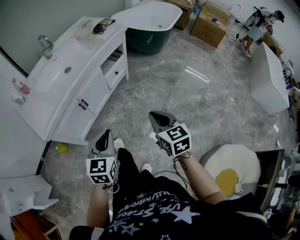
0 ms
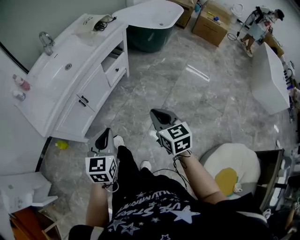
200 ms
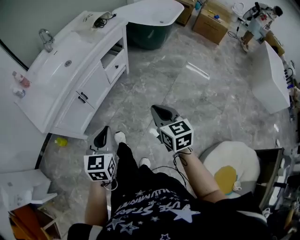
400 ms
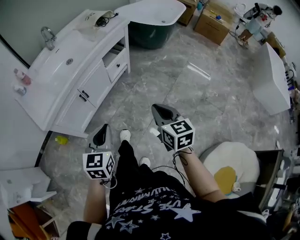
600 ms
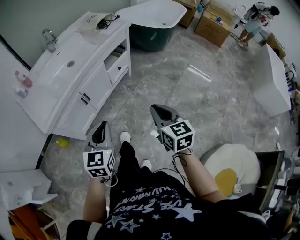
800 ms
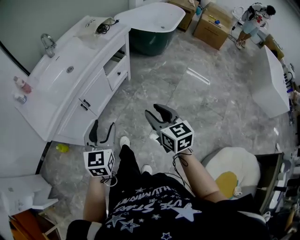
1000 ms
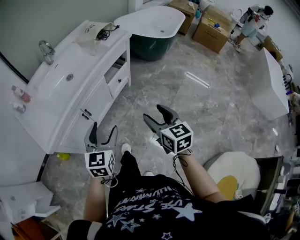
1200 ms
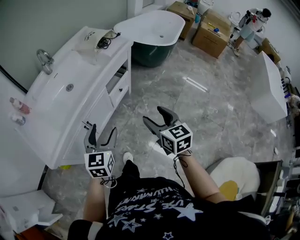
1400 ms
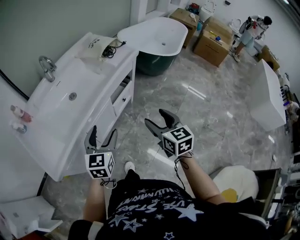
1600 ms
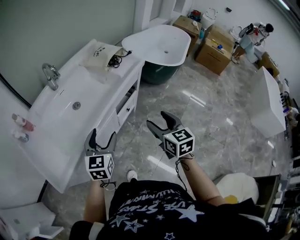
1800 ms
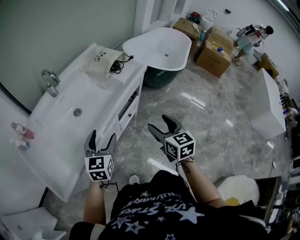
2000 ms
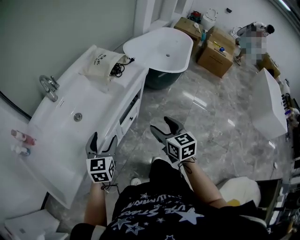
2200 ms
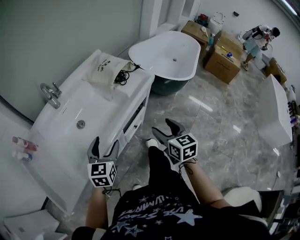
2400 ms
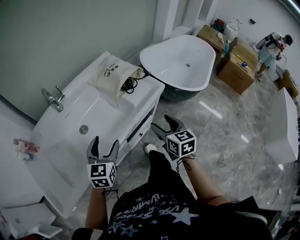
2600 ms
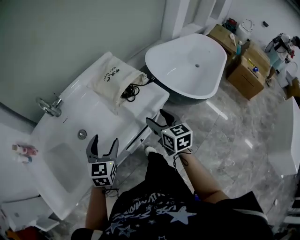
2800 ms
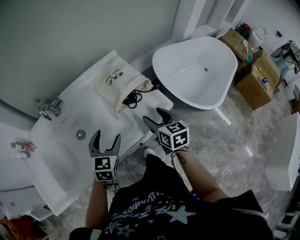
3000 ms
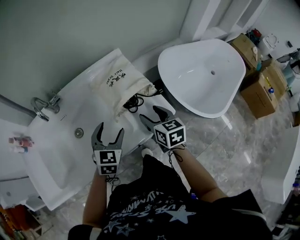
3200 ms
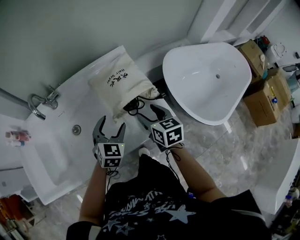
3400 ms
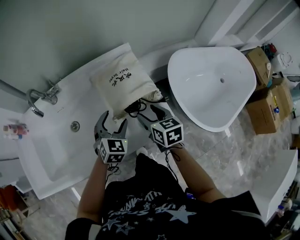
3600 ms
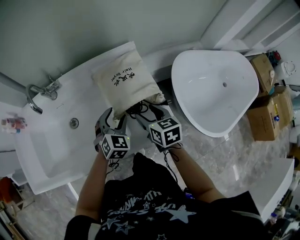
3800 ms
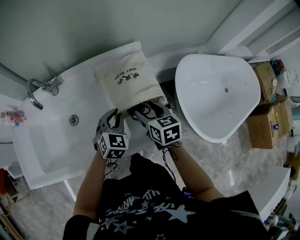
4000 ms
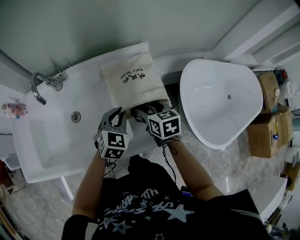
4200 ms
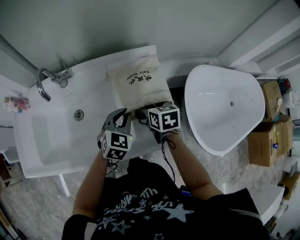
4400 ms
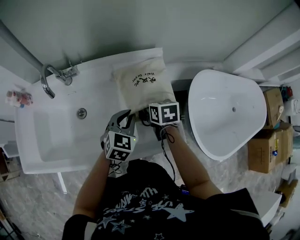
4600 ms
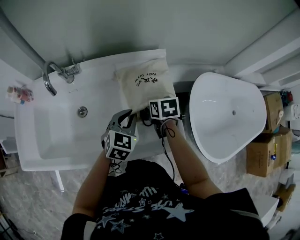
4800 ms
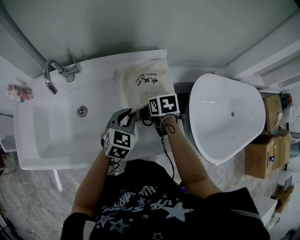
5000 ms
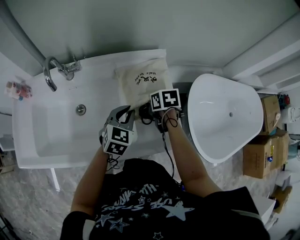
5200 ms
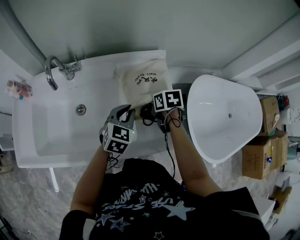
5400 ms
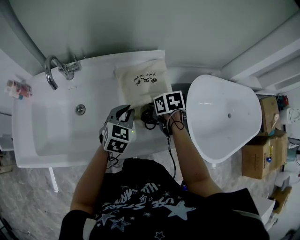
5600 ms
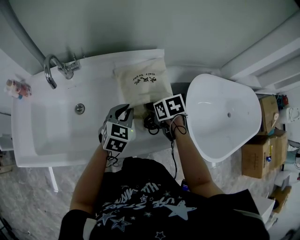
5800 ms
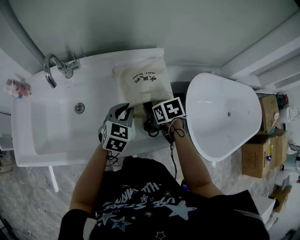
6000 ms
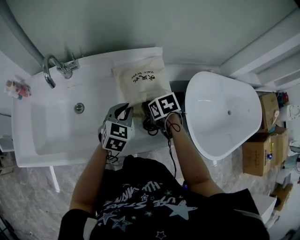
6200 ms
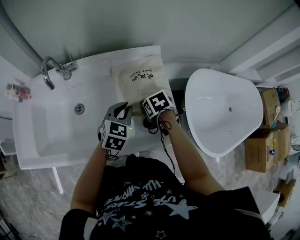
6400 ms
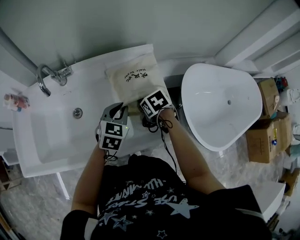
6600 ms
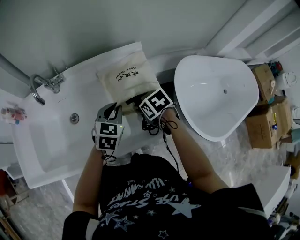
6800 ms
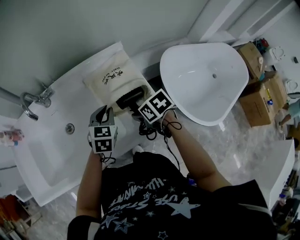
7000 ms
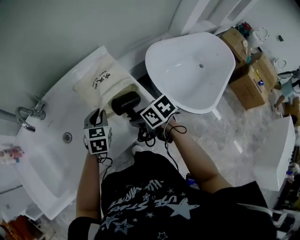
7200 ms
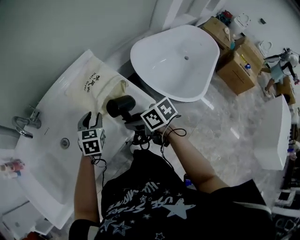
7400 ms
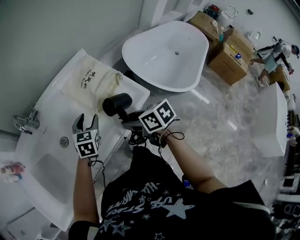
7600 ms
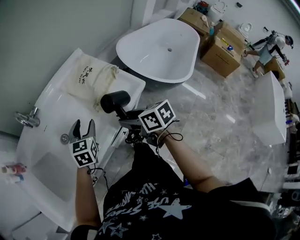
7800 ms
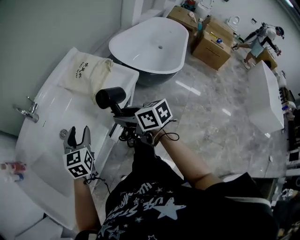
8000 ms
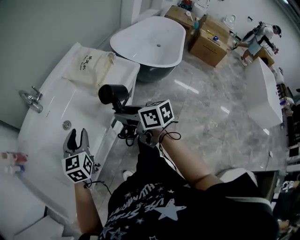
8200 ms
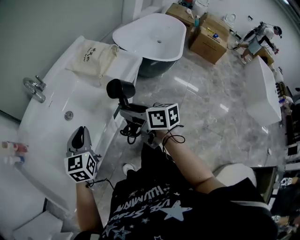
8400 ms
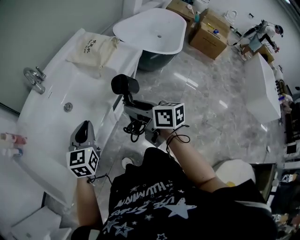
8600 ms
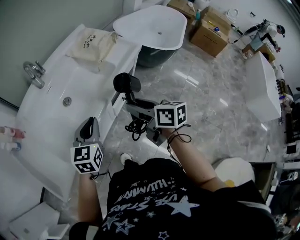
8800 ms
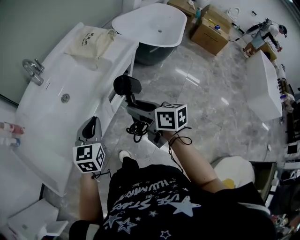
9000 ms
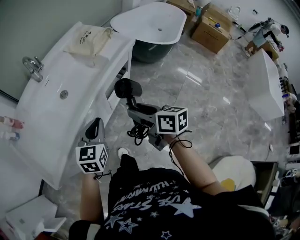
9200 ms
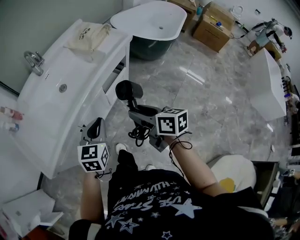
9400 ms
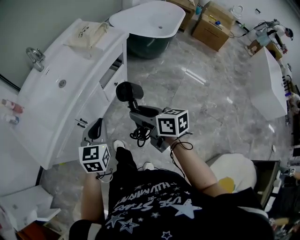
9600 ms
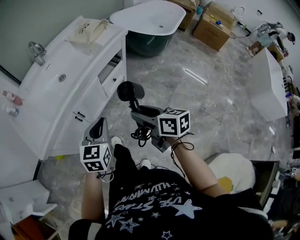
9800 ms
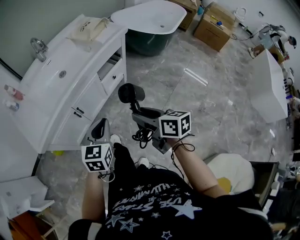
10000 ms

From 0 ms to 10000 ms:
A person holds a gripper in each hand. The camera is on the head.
From 0 ms to 1400 ms: The grippers both shift forward by some 20 cm. The left gripper opens its fingers, while the right gripper opens its fingers.
From 1400 ms to 2800 ms: The two grippers go approximately 40 cm forward.
From 2800 ms to 4200 ms: The left gripper ends up approximately 20 cm from where it was, and closes. Meanwhile the right gripper moves about 20 cm, and changes its angle by about 30 degrees.
From 4200 ms to 5800 ms: The right gripper swivels approximately 30 degrees, and closes.
From 5800 ms to 7200 ms: The right gripper is displaced backward by about 10 cm.
From 7200 ms to 8600 ms: The left gripper ends up some 35 cm from where it was, swivels roughly 30 degrees, and opens and closes again. Meanwhile the right gripper ends up approximately 35 cm from where it was, and tips its fingers upward by roughly 30 degrees.
From 8600 ms to 10000 ms: The left gripper moves backward and to the right, roughly 30 cm, while the right gripper travels backward by roughly 30 cm.

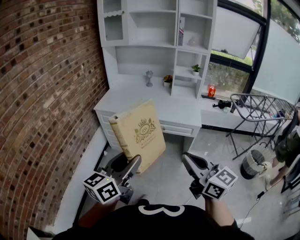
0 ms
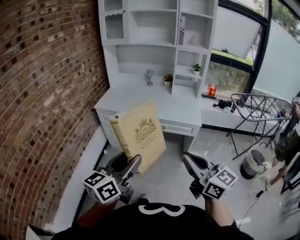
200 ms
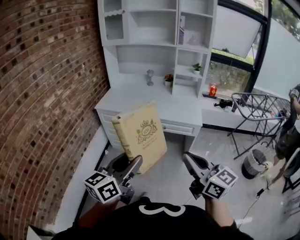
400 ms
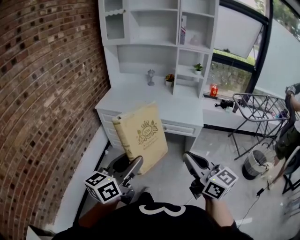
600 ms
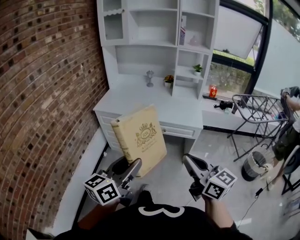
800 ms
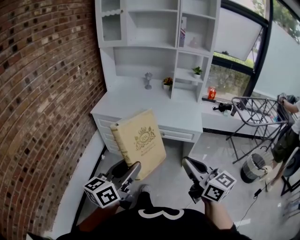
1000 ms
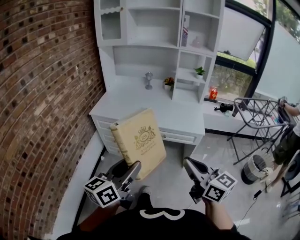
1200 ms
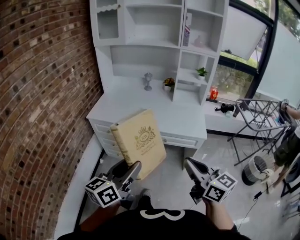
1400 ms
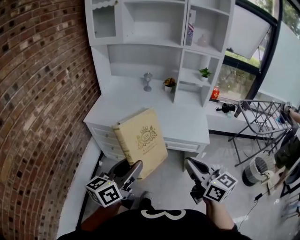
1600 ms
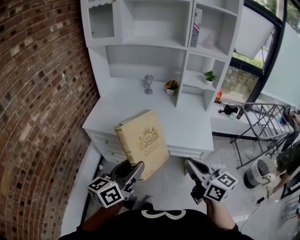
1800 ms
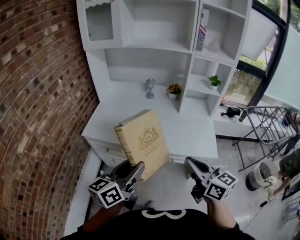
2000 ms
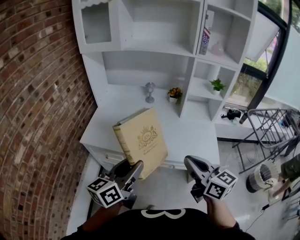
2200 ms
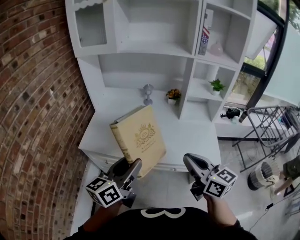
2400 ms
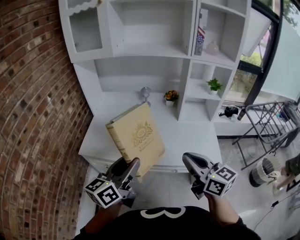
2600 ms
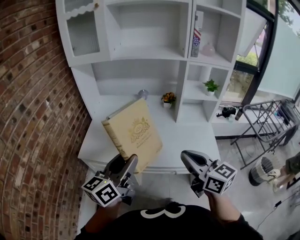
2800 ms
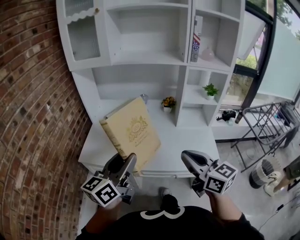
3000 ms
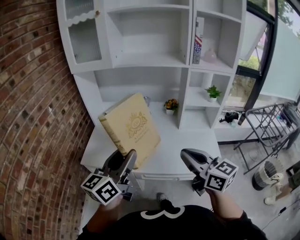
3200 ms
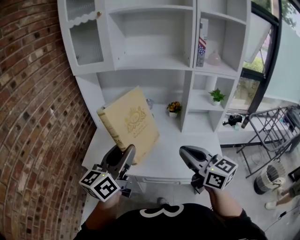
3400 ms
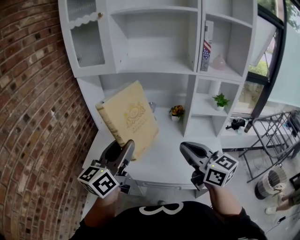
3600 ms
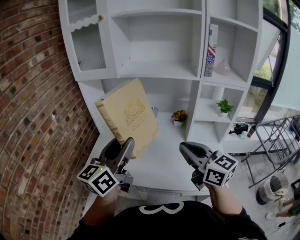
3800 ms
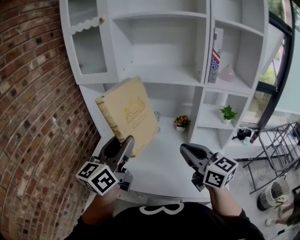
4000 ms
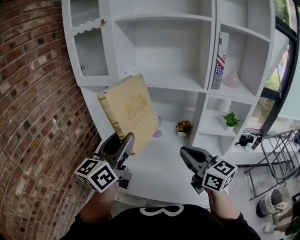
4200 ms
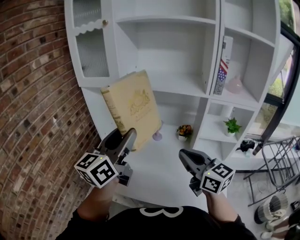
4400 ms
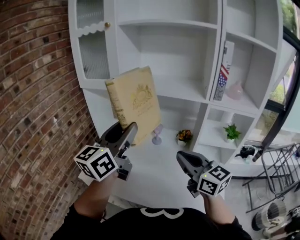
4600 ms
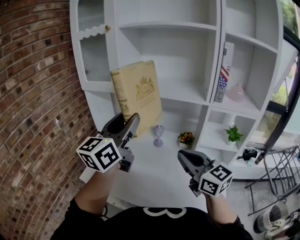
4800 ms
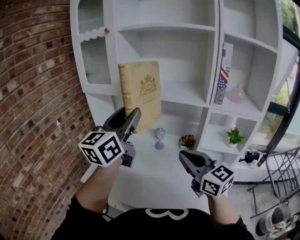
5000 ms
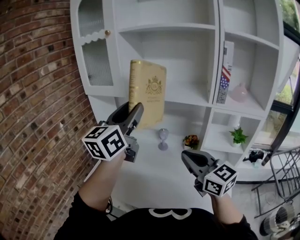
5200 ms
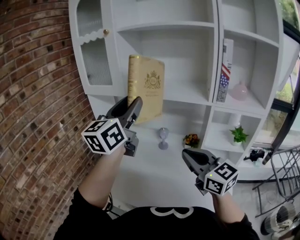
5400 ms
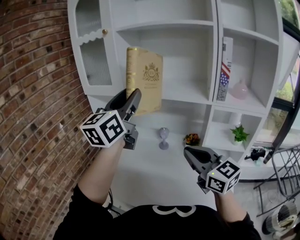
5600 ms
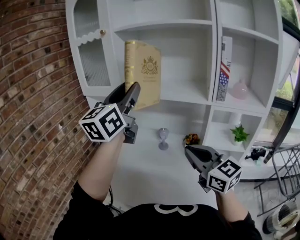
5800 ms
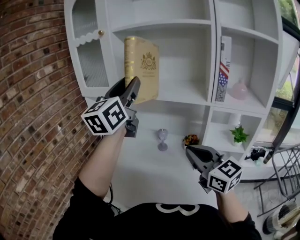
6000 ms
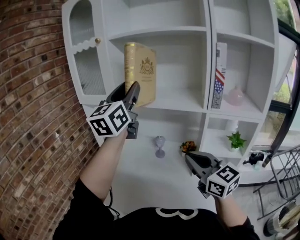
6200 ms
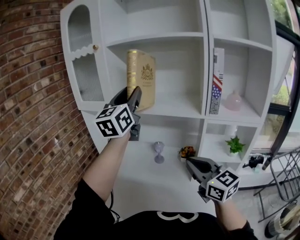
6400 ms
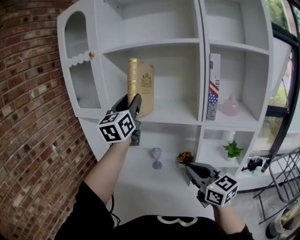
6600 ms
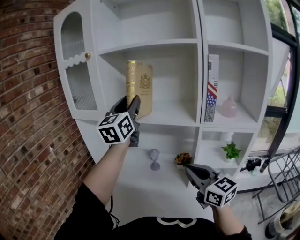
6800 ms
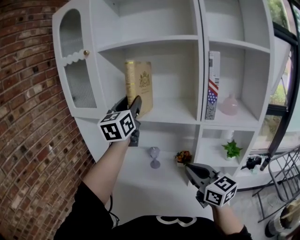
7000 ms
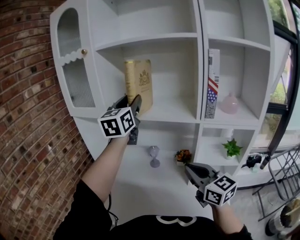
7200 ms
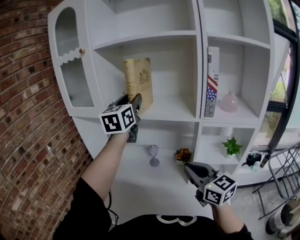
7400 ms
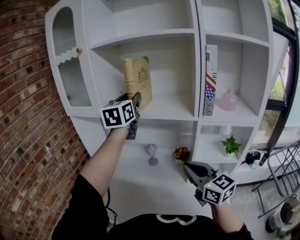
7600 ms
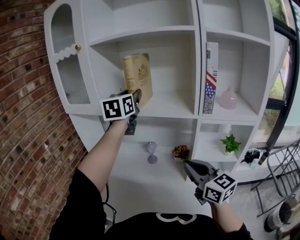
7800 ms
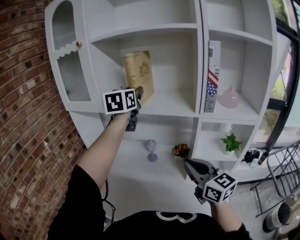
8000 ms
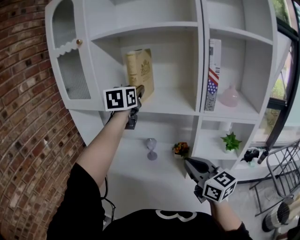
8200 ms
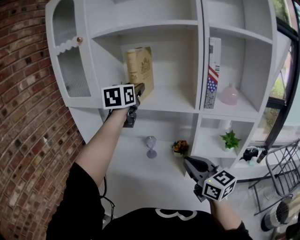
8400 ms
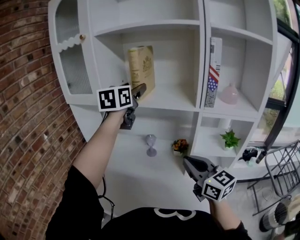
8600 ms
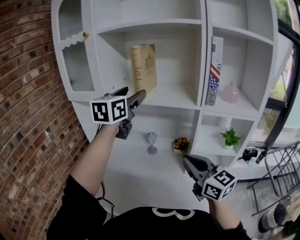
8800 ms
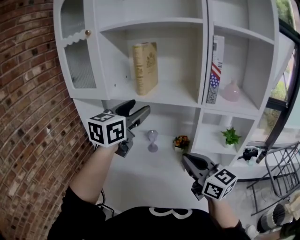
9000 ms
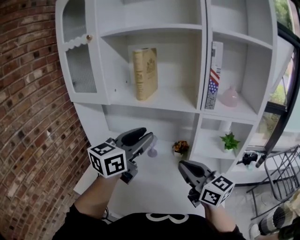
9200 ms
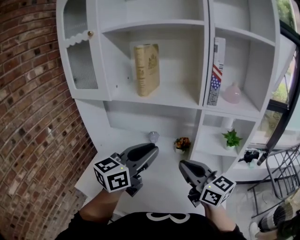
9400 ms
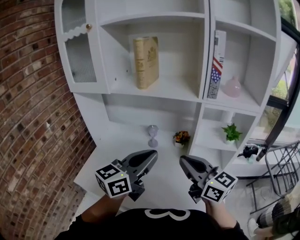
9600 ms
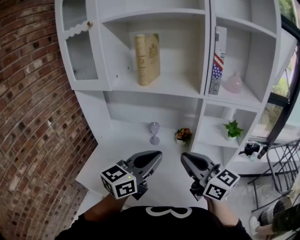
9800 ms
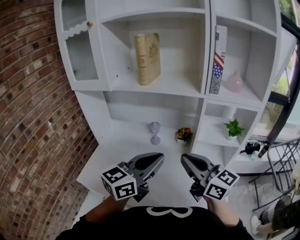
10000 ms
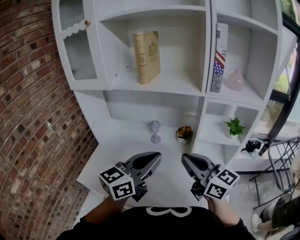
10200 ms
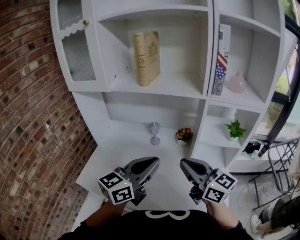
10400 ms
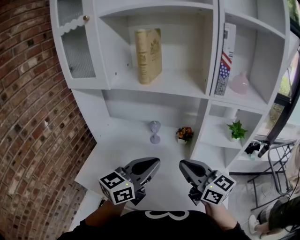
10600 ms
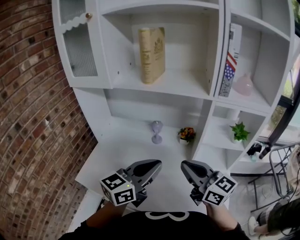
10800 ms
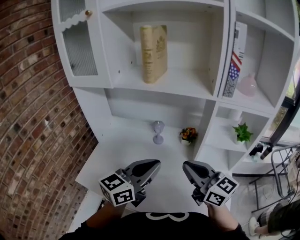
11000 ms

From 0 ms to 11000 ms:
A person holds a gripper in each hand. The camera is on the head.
From 0 ms to 1600 ms: Both grippers move forward, roughly 20 cm.
From 1600 ms to 3200 ms: Both grippers travel together forward, roughly 25 cm.
From 3200 ms to 4800 ms: The left gripper moves forward and upward, about 25 cm, and rotates roughly 20 degrees. The right gripper goes about 20 cm forward.
From 4800 ms to 6200 ms: The left gripper is displaced forward and upward by approximately 15 cm.
From 6200 ms to 7800 ms: The right gripper shifts by some 5 cm. Meanwhile the left gripper heads forward, to the right and downward, covering about 15 cm, and changes its angle by about 20 degrees.
From 7800 ms to 9400 ms: The left gripper goes approximately 30 cm backward and downward, rotates some 30 degrees, and opens, then closes once more; the right gripper ends up roughly 5 cm from where it was.
From 9400 ms to 11000 ms: The left gripper moves downward, approximately 10 cm. Meanwhile the right gripper changes place by approximately 5 cm.

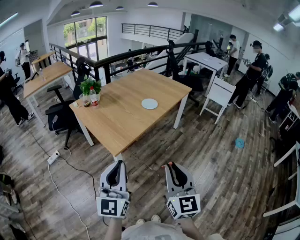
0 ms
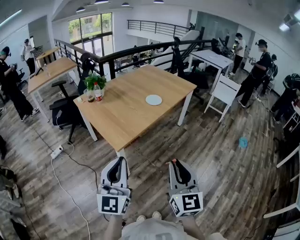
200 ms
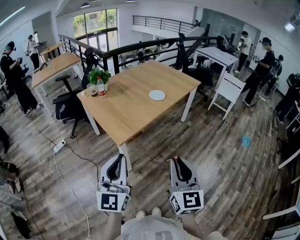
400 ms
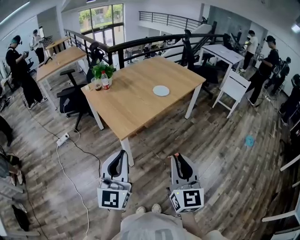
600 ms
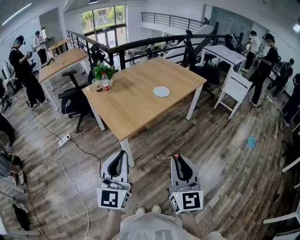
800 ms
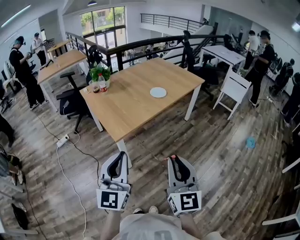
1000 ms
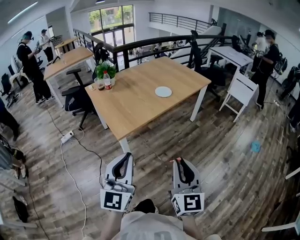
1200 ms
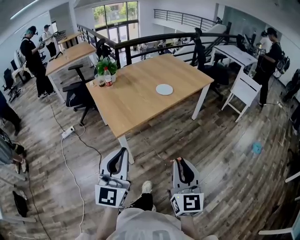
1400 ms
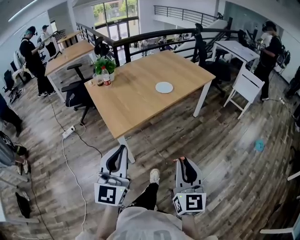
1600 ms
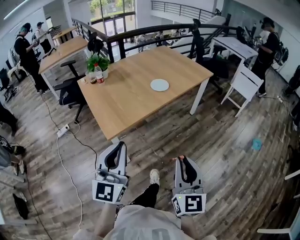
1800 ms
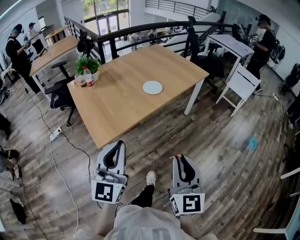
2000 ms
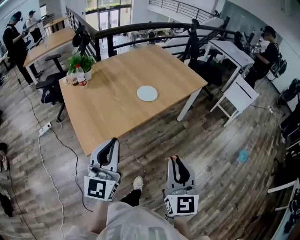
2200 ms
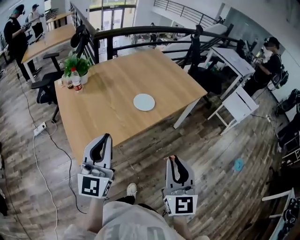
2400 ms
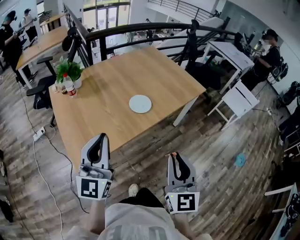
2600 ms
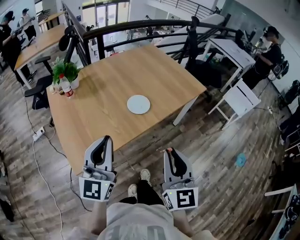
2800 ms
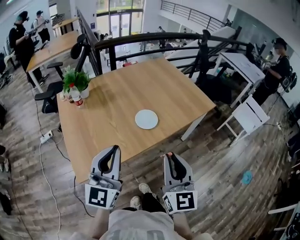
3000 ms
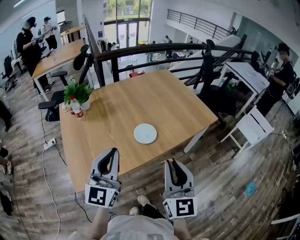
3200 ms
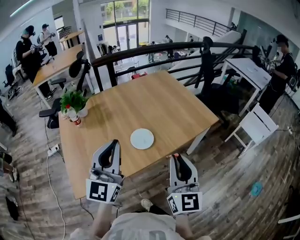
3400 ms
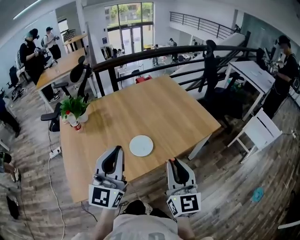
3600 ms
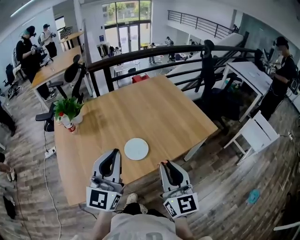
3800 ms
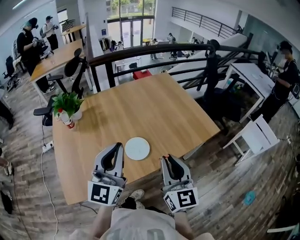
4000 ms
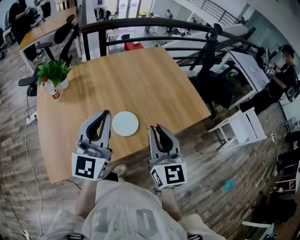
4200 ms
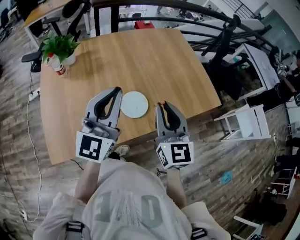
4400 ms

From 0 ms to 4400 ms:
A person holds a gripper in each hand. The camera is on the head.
From 0 ms to 1400 ms: The grippers both shift to the right by roughly 10 cm.
From 1400 ms to 3000 ms: The grippers both shift forward by roughly 35 cm.
From 3000 ms to 4400 ms: The grippers both shift forward by some 25 cm.
